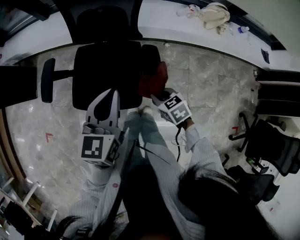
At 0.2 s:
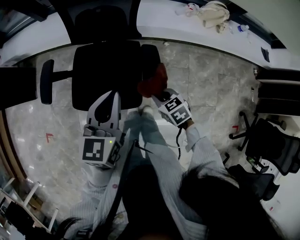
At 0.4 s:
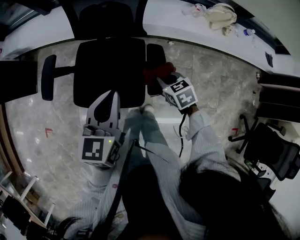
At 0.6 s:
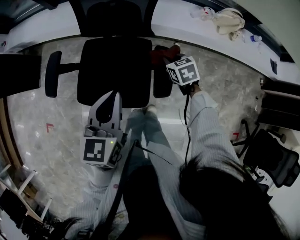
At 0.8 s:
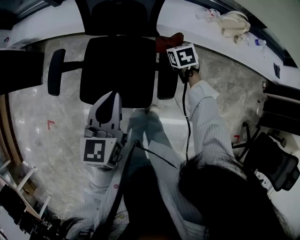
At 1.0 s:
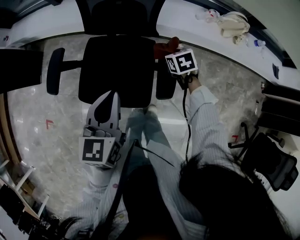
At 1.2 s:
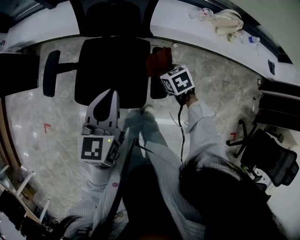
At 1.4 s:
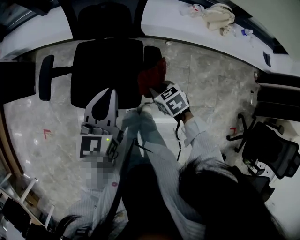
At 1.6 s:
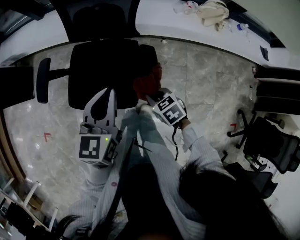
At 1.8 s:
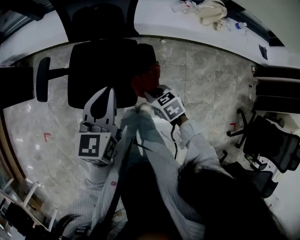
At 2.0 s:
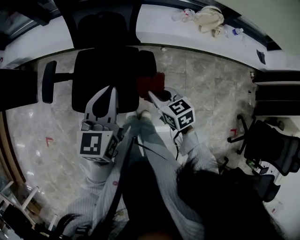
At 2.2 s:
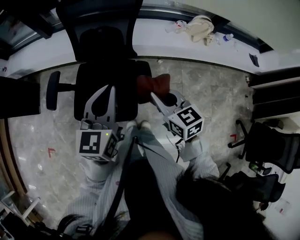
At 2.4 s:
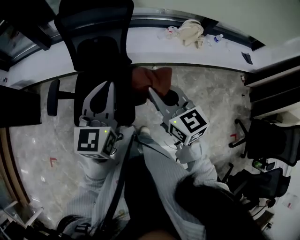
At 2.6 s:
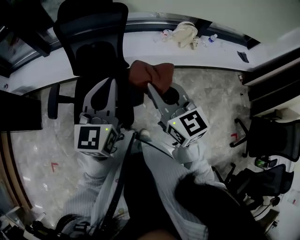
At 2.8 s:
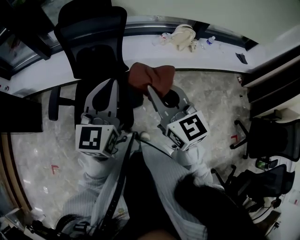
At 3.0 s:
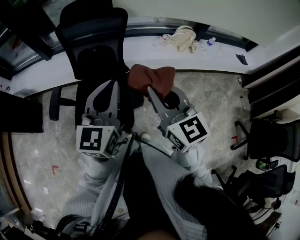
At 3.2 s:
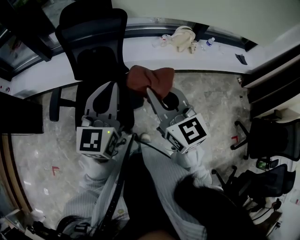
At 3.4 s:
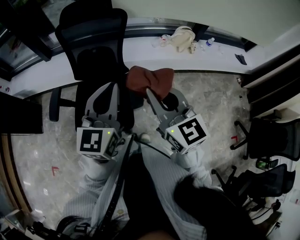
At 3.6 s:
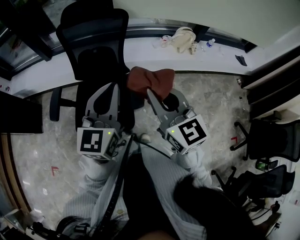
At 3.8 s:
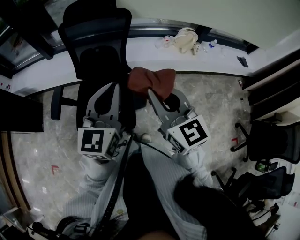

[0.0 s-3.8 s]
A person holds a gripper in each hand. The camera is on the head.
0.0 to 1.2 s: The left gripper changes place by about 5 cm; the right gripper shifts about 15 cm forward.
1.2 to 2.6 s: The left gripper moves upward, to the right and backward, approximately 20 cm, and turns by some 30 degrees. The right gripper heads upward, covering some 40 cm, and points its fingers about 50 degrees further upward.
2.6 to 3.8 s: The grippers make only small movements.

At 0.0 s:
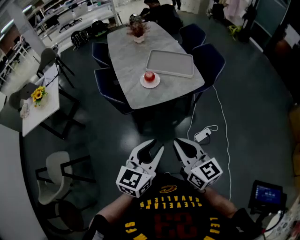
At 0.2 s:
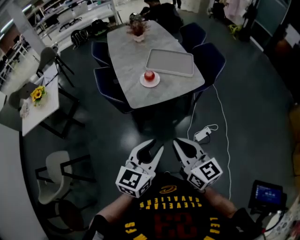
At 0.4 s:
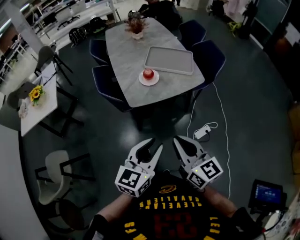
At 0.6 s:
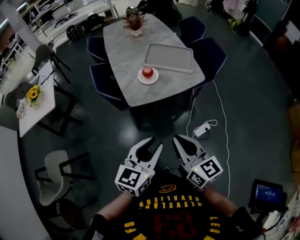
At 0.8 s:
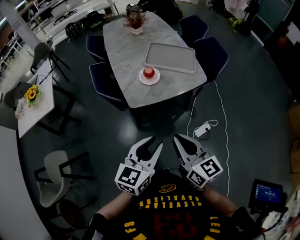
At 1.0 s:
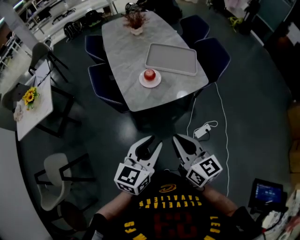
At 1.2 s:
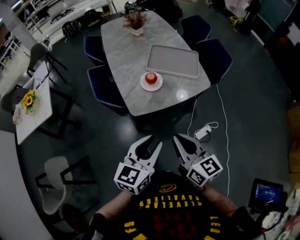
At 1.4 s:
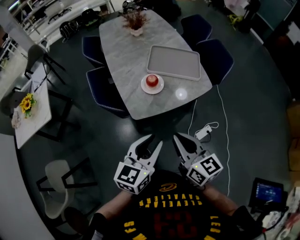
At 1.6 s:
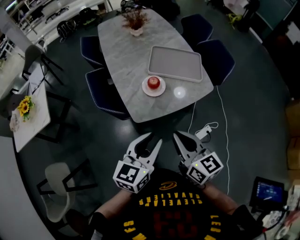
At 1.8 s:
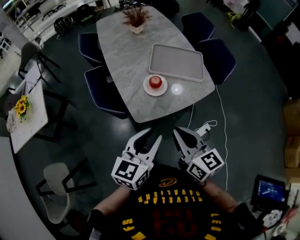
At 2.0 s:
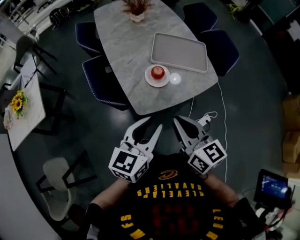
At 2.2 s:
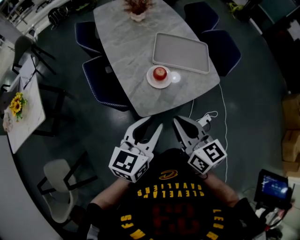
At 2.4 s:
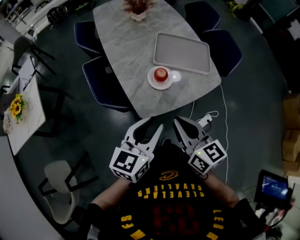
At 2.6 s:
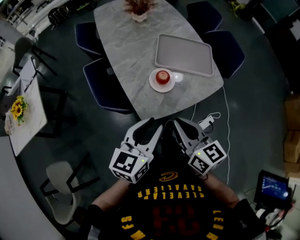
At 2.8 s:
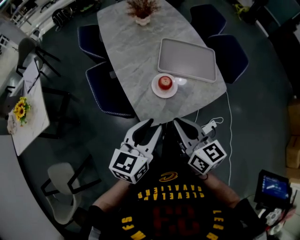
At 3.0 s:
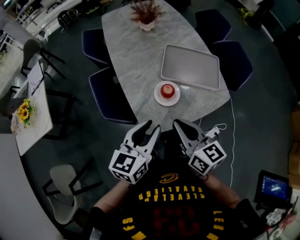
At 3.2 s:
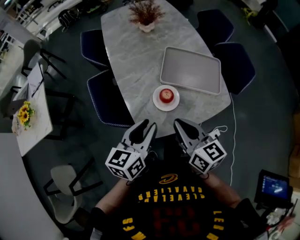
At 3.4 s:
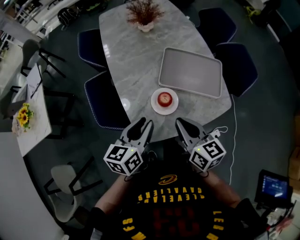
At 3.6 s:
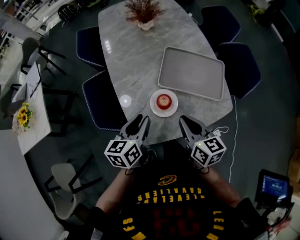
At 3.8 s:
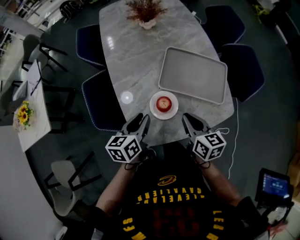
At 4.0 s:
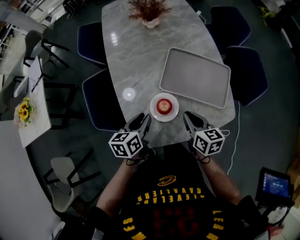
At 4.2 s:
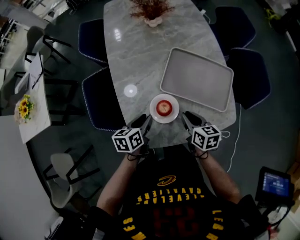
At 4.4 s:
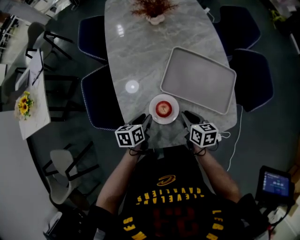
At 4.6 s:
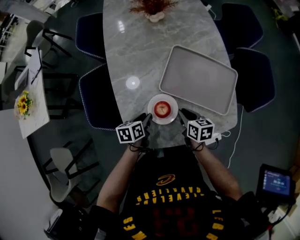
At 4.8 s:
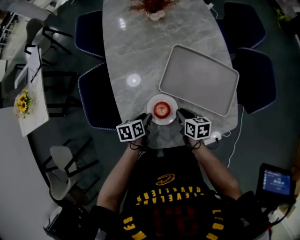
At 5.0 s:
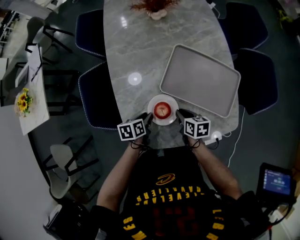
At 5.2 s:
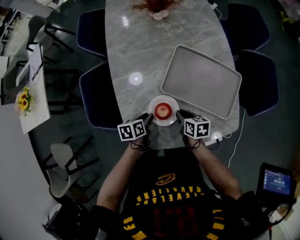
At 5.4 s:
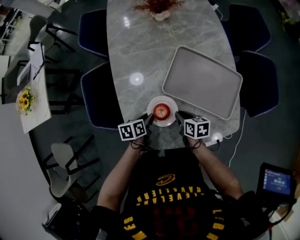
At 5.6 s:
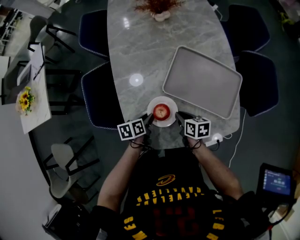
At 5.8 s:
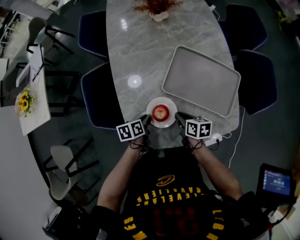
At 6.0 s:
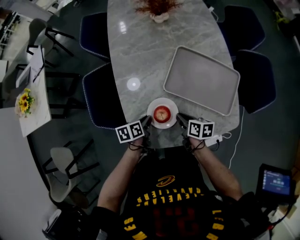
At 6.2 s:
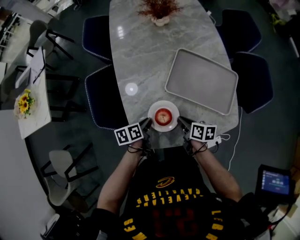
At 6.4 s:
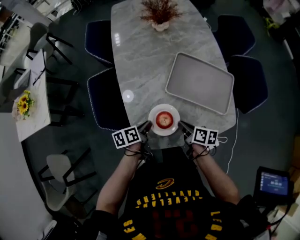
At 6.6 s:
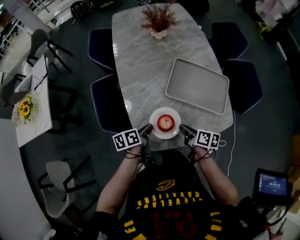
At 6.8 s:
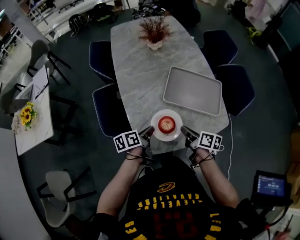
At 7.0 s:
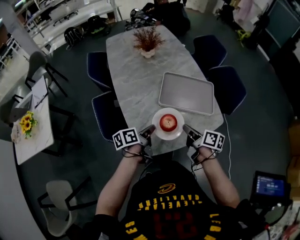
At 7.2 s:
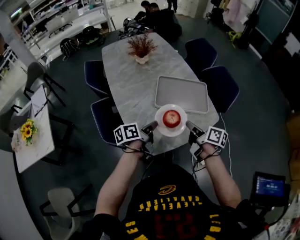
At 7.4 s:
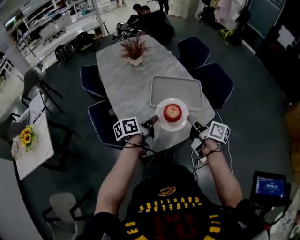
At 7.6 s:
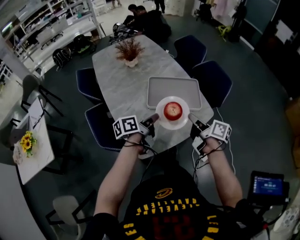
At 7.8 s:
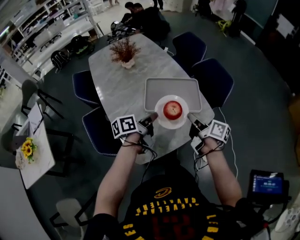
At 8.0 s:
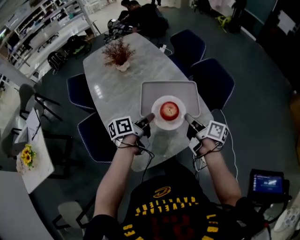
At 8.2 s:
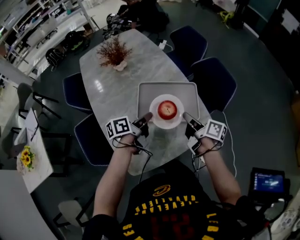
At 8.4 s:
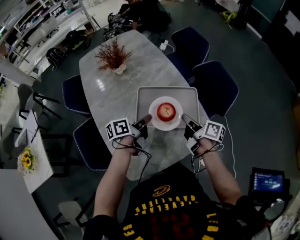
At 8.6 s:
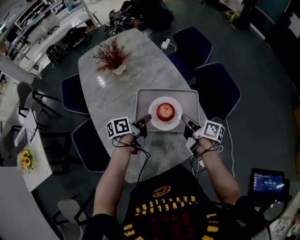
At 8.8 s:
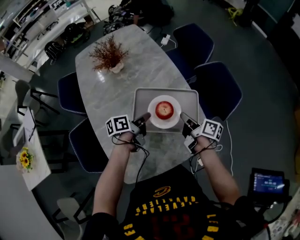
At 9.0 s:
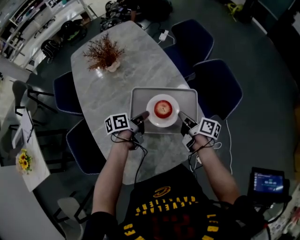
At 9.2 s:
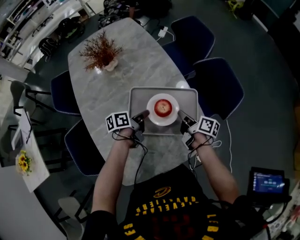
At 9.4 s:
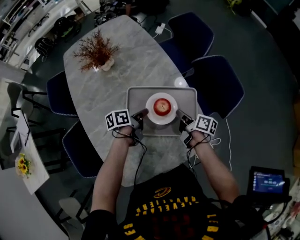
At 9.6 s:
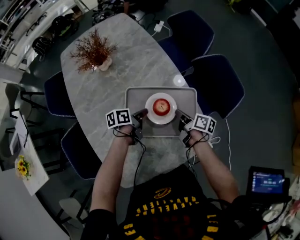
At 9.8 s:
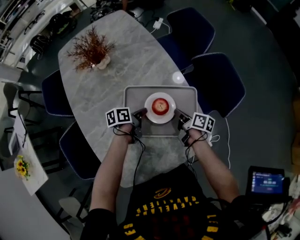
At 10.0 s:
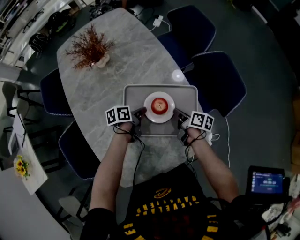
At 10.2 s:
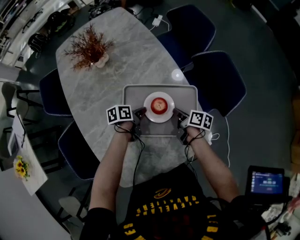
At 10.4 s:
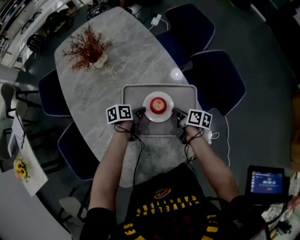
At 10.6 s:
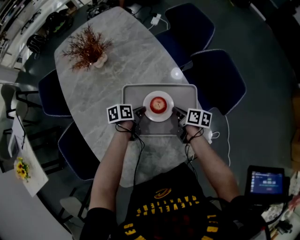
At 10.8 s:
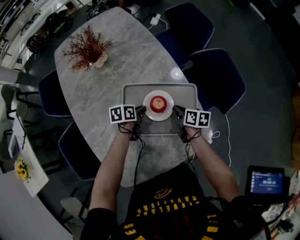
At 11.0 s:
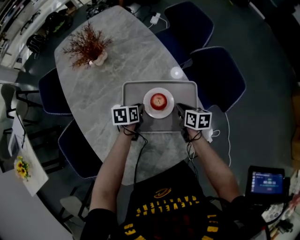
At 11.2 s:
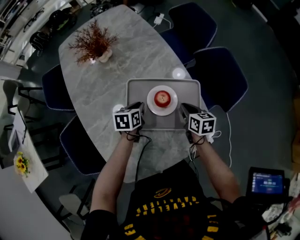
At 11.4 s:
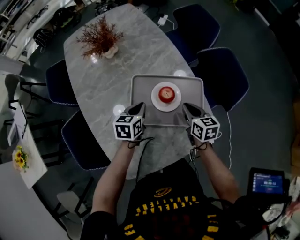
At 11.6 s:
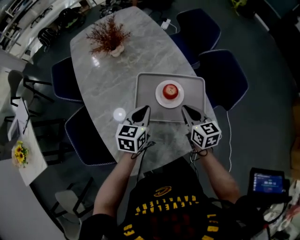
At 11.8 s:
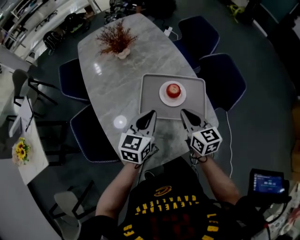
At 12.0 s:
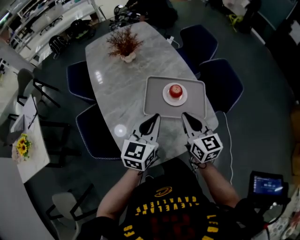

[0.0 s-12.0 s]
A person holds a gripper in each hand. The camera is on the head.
0.0 to 1.6 s: Both grippers move forward, approximately 20 cm.
1.6 to 3.0 s: The grippers both shift forward and to the left by approximately 15 cm.
3.0 to 4.4 s: The right gripper moves downward, forward and to the right, some 30 cm, and swivels approximately 30 degrees. The left gripper is displaced downward and forward by about 30 cm, and points its fingers some 30 degrees further downward.
4.4 to 6.0 s: The right gripper changes place by some 5 cm.
6.0 to 7.6 s: Both grippers travel together upward, approximately 25 cm. The right gripper changes its angle by roughly 50 degrees, while the left gripper tips its fingers upward by roughly 40 degrees.
7.6 to 9.0 s: The two grippers go roughly 30 cm forward and downward.
9.0 to 10.4 s: The two grippers go about 10 cm downward.
10.4 to 12.0 s: Both grippers move upward and backward, roughly 30 cm. The left gripper changes its angle by roughly 70 degrees; the right gripper twists some 60 degrees counterclockwise, seen from behind.

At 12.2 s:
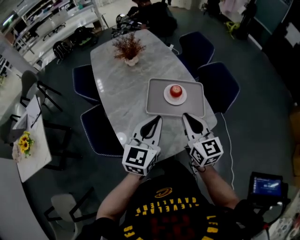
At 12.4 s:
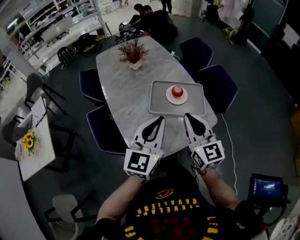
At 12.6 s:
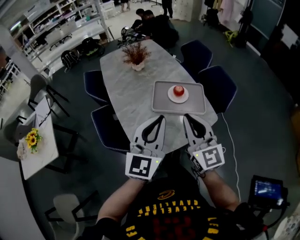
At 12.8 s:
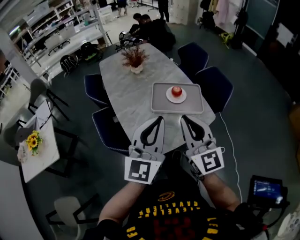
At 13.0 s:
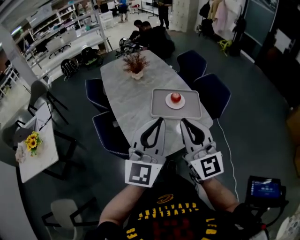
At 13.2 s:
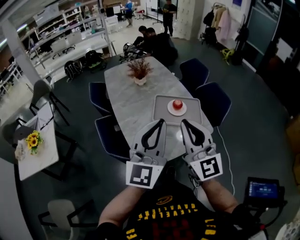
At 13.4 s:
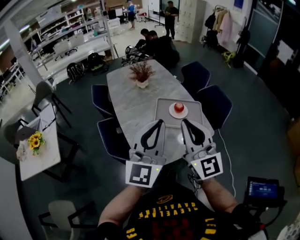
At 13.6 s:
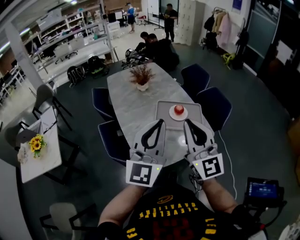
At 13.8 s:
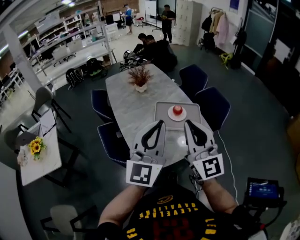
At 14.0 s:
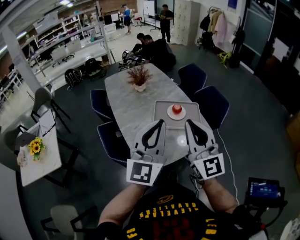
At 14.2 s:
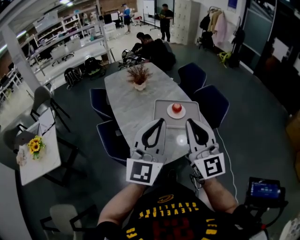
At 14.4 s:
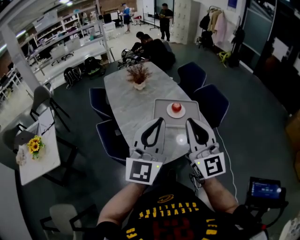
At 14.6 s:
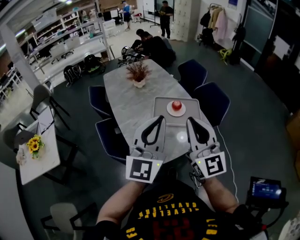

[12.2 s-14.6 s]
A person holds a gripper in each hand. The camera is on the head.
12.2 to 13.4 s: The two grippers go about 25 cm upward and backward. The left gripper rotates roughly 30 degrees; the right gripper swivels approximately 30 degrees.
13.4 to 14.6 s: The grippers make only small movements.

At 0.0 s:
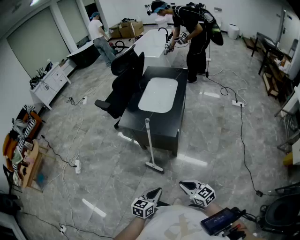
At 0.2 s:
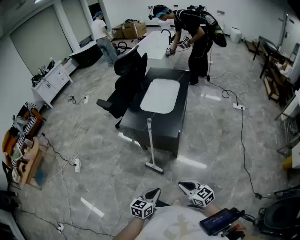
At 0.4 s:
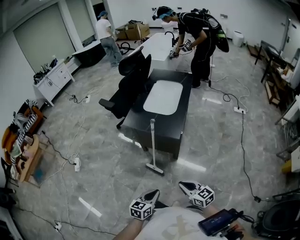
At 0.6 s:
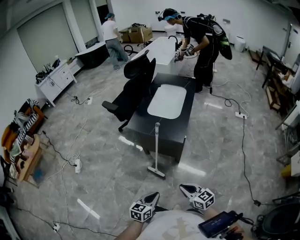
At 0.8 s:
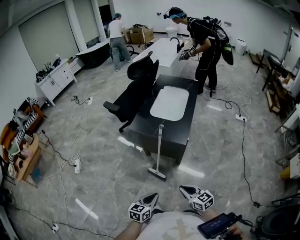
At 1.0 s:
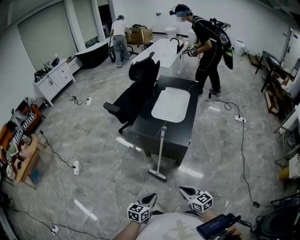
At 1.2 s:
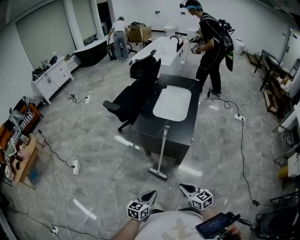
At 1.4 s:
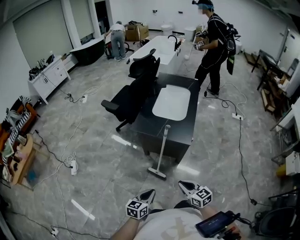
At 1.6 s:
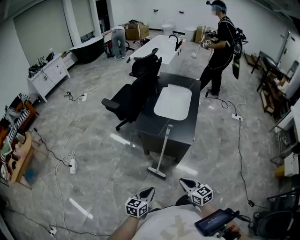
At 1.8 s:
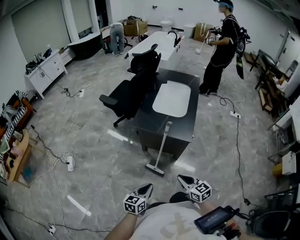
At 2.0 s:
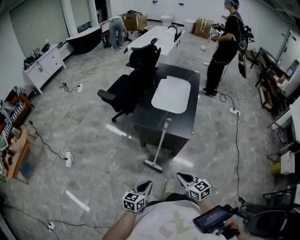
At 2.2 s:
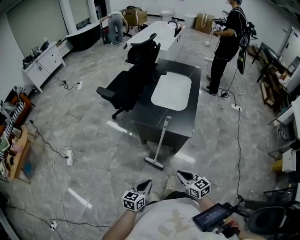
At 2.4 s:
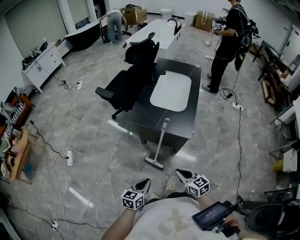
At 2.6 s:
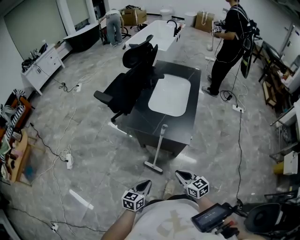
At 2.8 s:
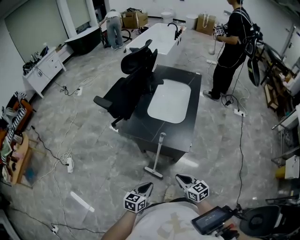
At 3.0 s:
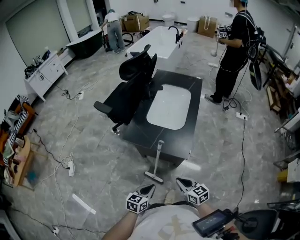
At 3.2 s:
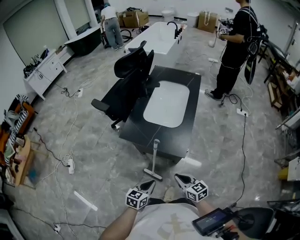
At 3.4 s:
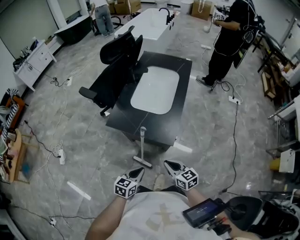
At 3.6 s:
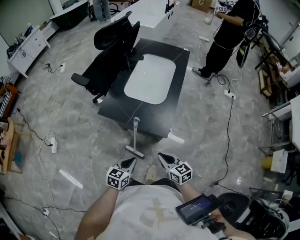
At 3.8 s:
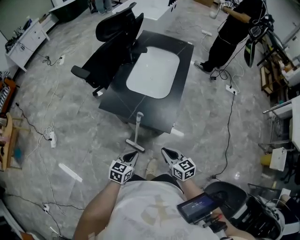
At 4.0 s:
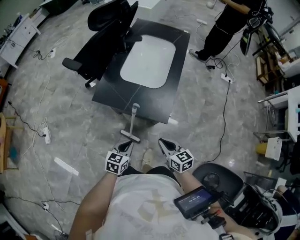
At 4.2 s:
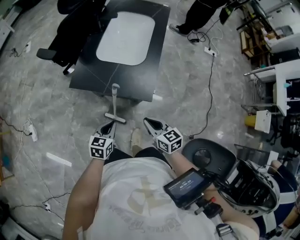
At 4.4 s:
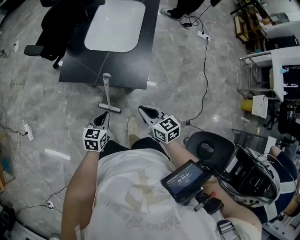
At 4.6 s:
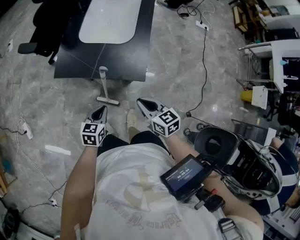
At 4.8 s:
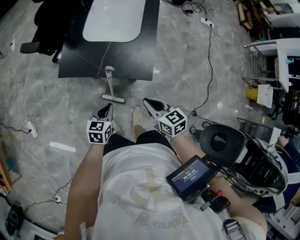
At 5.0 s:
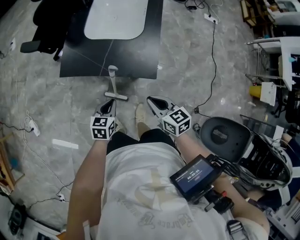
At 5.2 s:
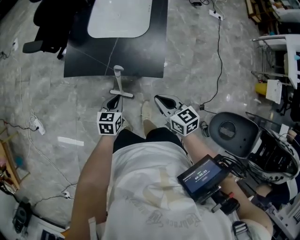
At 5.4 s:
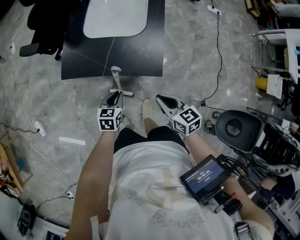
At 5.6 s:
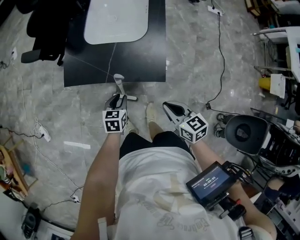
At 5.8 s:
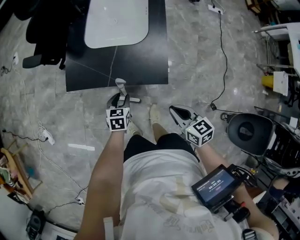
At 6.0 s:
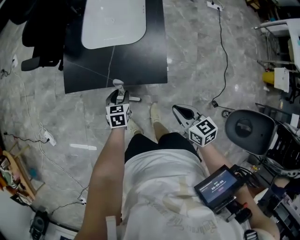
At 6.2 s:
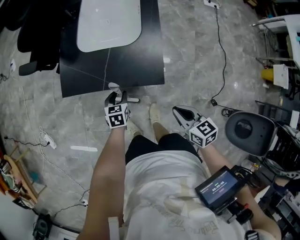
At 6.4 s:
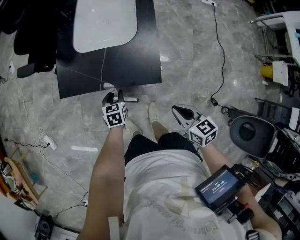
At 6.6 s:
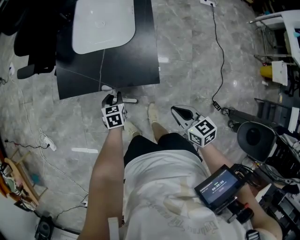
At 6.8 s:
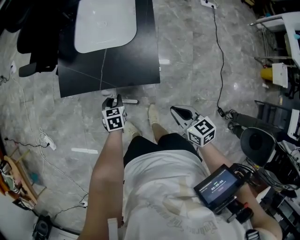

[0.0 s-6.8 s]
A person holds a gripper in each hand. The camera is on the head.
0.0 to 1.4 s: The left gripper shifts approximately 15 cm to the left. Meanwhile the right gripper heads to the left and forward, covering approximately 10 cm.
1.4 to 2.8 s: Both grippers travel together forward, about 10 cm.
2.8 to 4.0 s: The left gripper shifts roughly 10 cm forward. The right gripper heads forward, covering about 5 cm.
4.0 to 5.4 s: The left gripper heads downward and forward, covering roughly 10 cm.
5.4 to 6.8 s: The right gripper goes approximately 5 cm to the right. The left gripper shifts by roughly 5 cm.
